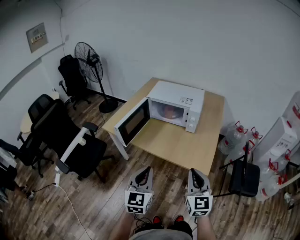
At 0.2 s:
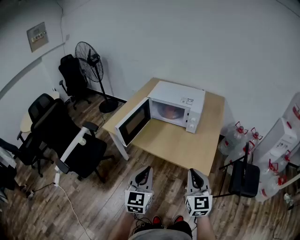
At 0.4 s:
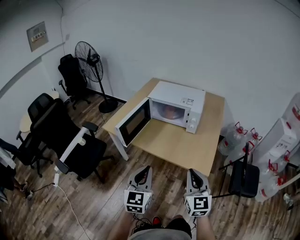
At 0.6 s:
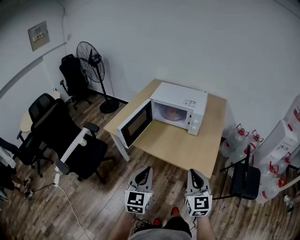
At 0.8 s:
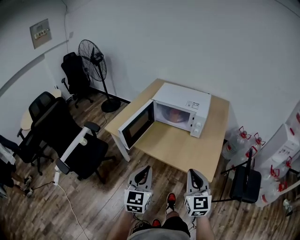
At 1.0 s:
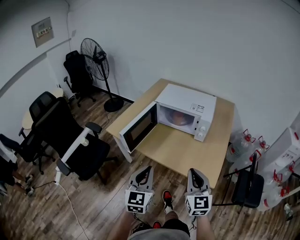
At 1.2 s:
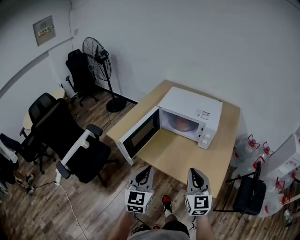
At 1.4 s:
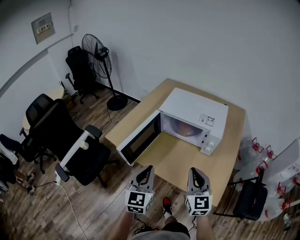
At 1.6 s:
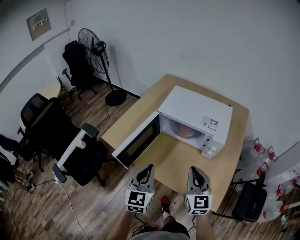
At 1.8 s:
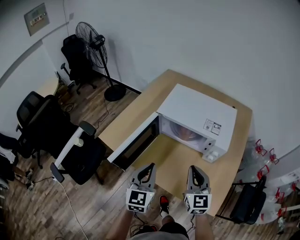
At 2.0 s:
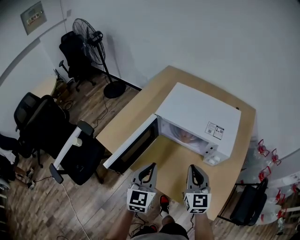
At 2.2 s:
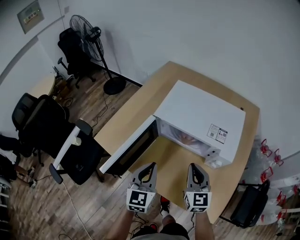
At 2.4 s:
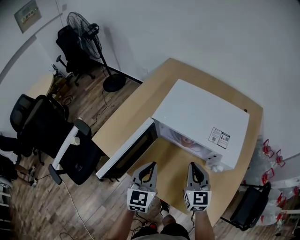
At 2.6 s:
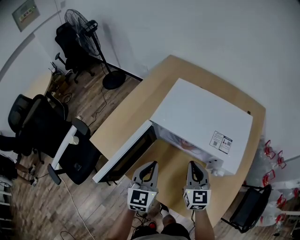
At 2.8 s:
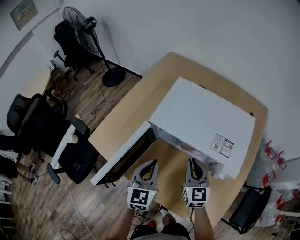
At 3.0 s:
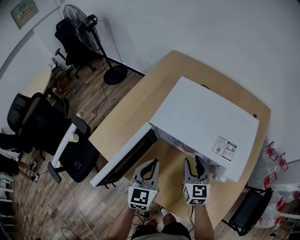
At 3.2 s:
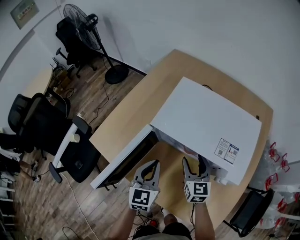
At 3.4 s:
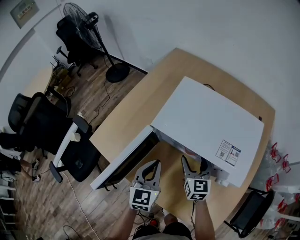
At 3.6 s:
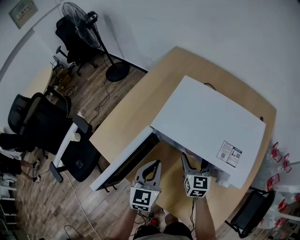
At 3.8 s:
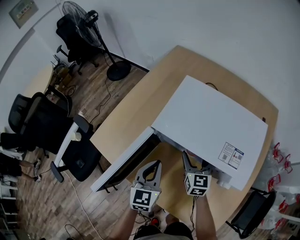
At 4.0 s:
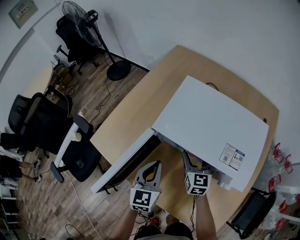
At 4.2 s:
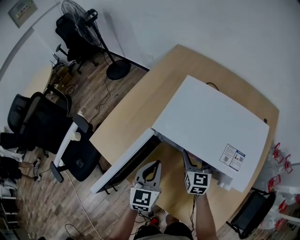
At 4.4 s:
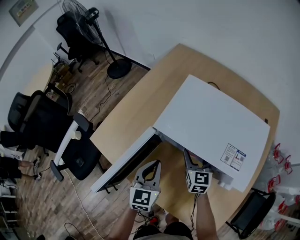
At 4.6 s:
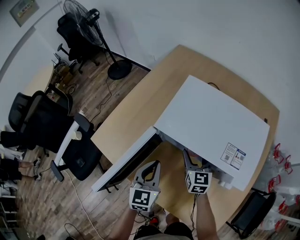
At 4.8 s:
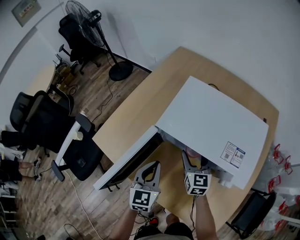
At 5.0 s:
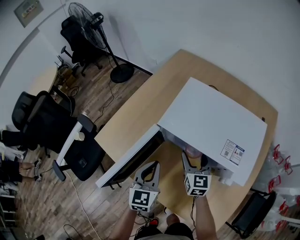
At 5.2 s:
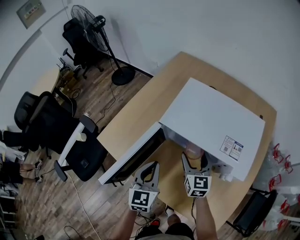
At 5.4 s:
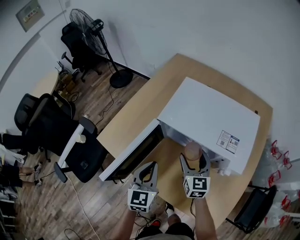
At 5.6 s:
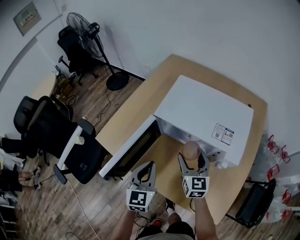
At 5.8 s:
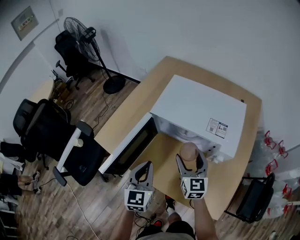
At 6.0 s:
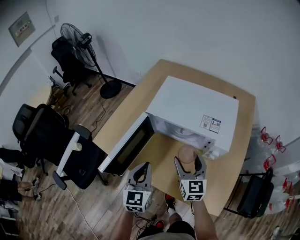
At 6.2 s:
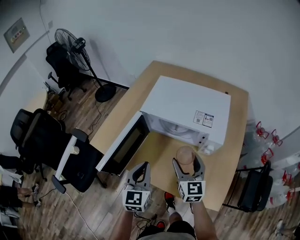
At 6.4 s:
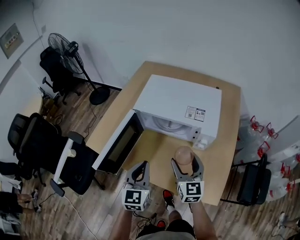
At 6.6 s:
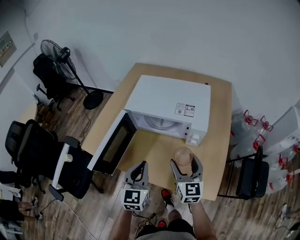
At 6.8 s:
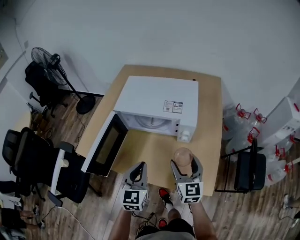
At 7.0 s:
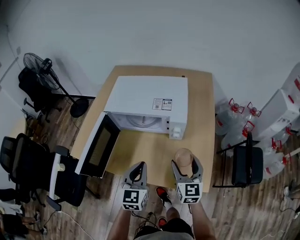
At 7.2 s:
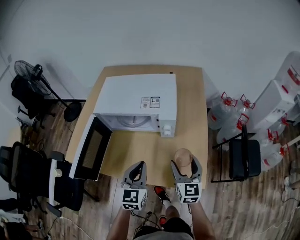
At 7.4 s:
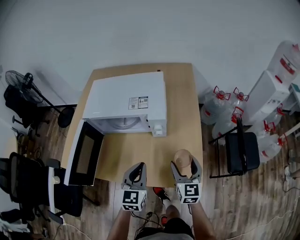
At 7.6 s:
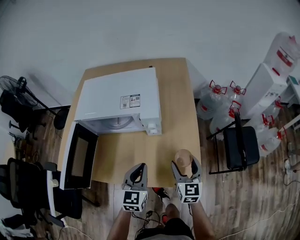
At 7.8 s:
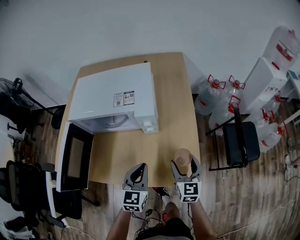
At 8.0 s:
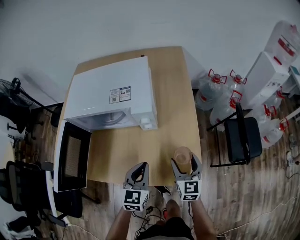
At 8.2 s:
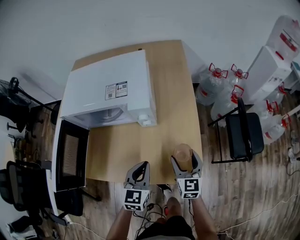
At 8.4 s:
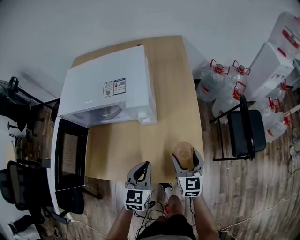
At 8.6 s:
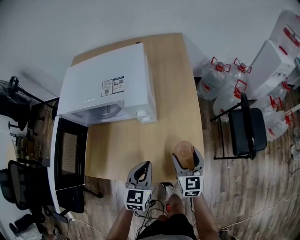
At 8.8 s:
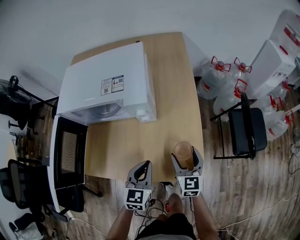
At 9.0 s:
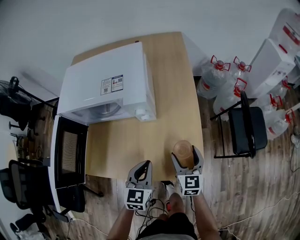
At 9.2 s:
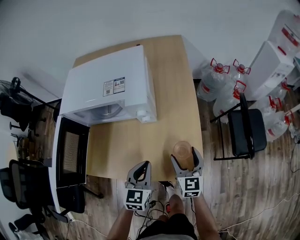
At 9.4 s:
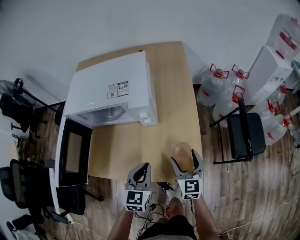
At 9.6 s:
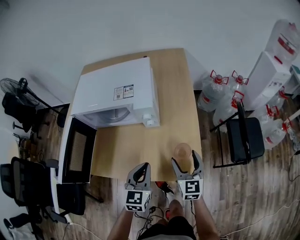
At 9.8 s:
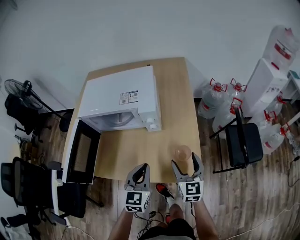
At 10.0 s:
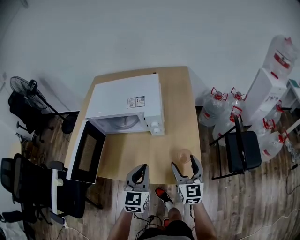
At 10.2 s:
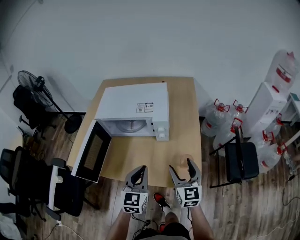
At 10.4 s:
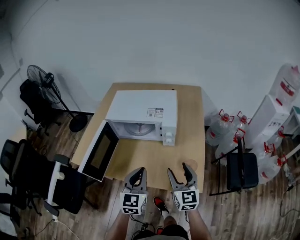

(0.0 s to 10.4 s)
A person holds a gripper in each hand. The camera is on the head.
0.0 s - 1.4 s: Both grippers move forward, some 20 cm.
1.4 s - 3.0 s: The grippers both shift forward and downward by about 30 cm. The right gripper opens its fingers.
3.0 s - 4.4 s: The right gripper is displaced forward by approximately 5 cm, and opens up.
4.4 s - 6.0 s: The grippers both shift backward and upward by approximately 15 cm.
6.0 s - 7.4 s: The right gripper moves some 25 cm, and rotates approximately 30 degrees. Meanwhile the left gripper shifts by approximately 20 cm, and rotates approximately 30 degrees.
7.4 s - 9.0 s: The left gripper is displaced downward and to the right by roughly 10 cm. Meanwhile the right gripper is displaced downward by some 10 cm.
9.0 s - 10.4 s: Both grippers move upward and to the left, about 20 cm. The left gripper changes its angle by roughly 20 degrees.

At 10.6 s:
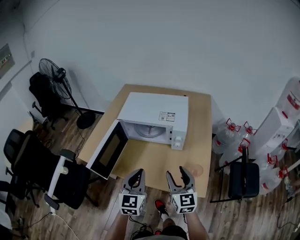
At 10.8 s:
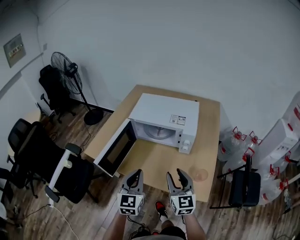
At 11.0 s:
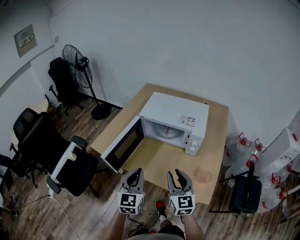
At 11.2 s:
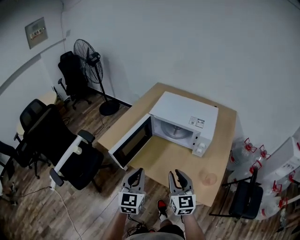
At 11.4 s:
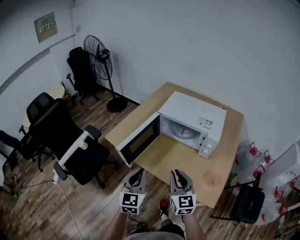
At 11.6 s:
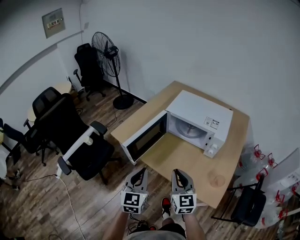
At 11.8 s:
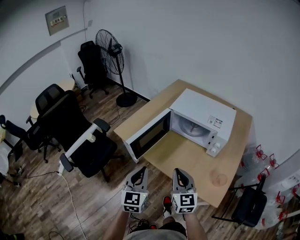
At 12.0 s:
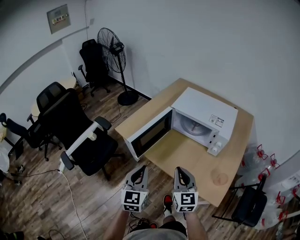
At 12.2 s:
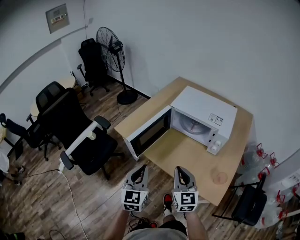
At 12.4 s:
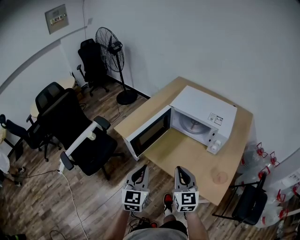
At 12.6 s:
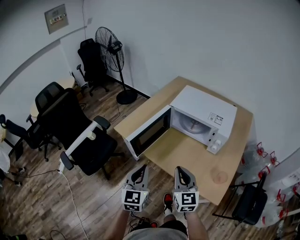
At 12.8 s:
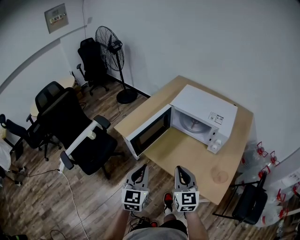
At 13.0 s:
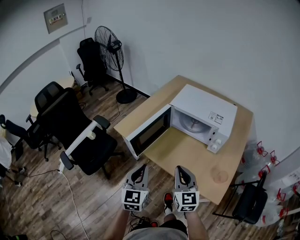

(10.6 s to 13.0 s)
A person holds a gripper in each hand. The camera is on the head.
10.6 s - 11.8 s: Both grippers move to the left, some 15 cm. The left gripper turns by about 20 degrees. The right gripper rotates roughly 20 degrees, and closes its fingers.
11.8 s - 13.0 s: Neither gripper changes place.

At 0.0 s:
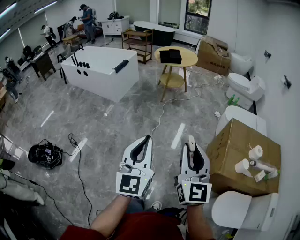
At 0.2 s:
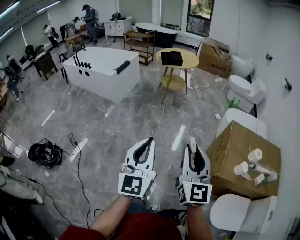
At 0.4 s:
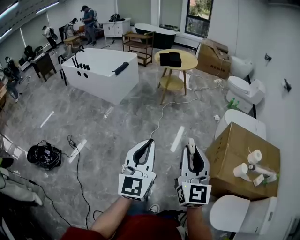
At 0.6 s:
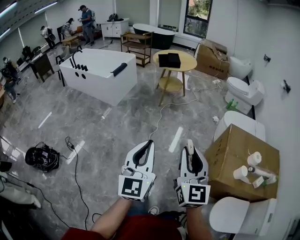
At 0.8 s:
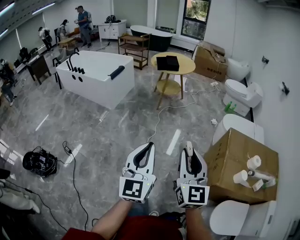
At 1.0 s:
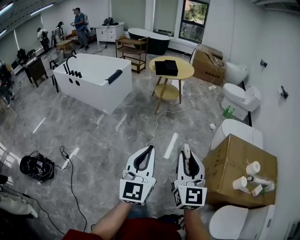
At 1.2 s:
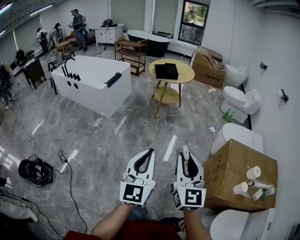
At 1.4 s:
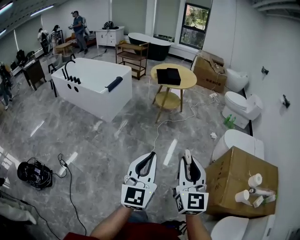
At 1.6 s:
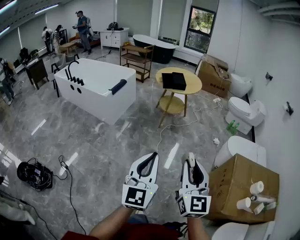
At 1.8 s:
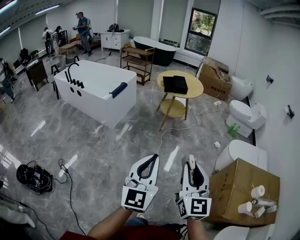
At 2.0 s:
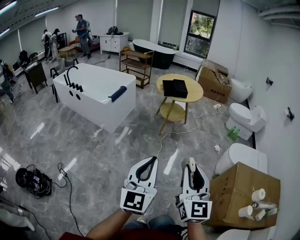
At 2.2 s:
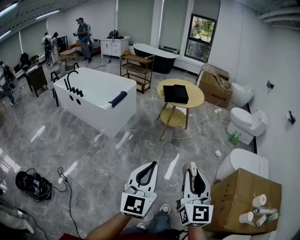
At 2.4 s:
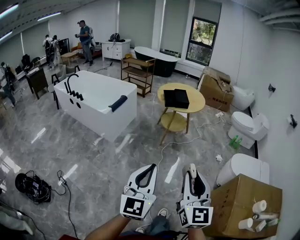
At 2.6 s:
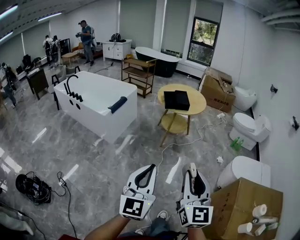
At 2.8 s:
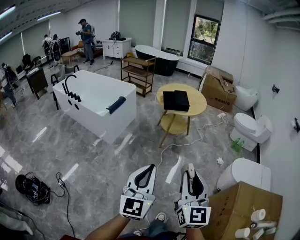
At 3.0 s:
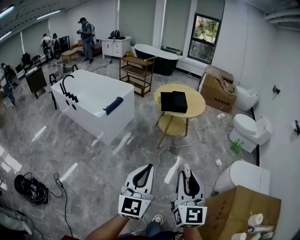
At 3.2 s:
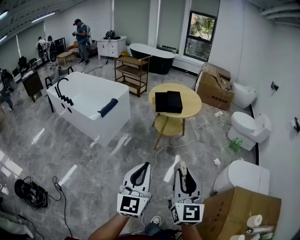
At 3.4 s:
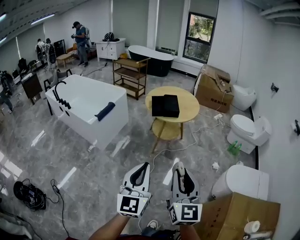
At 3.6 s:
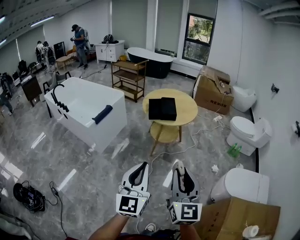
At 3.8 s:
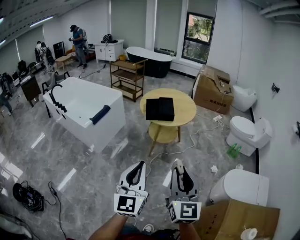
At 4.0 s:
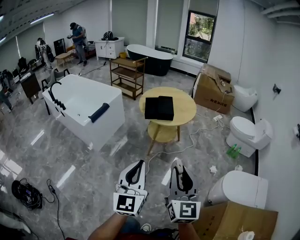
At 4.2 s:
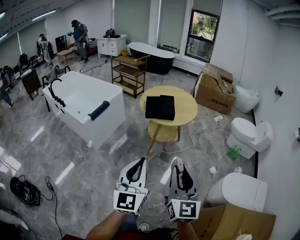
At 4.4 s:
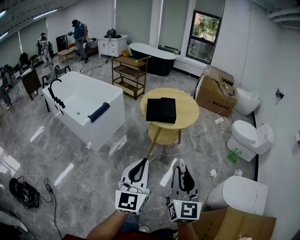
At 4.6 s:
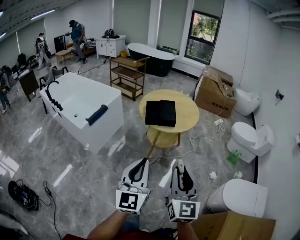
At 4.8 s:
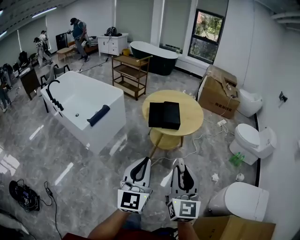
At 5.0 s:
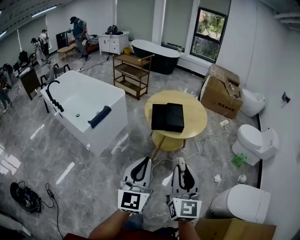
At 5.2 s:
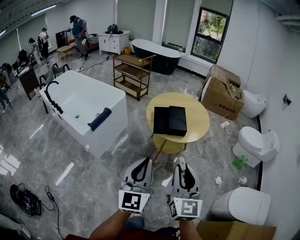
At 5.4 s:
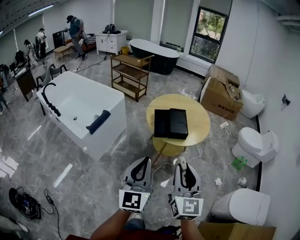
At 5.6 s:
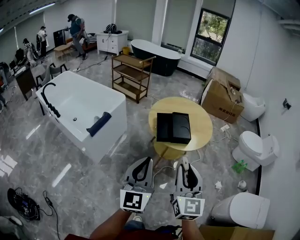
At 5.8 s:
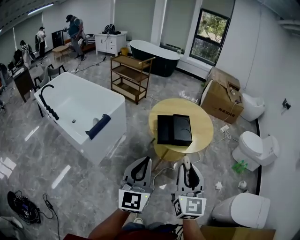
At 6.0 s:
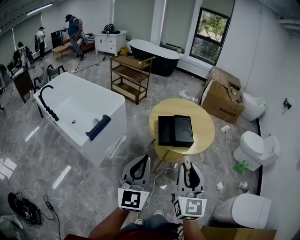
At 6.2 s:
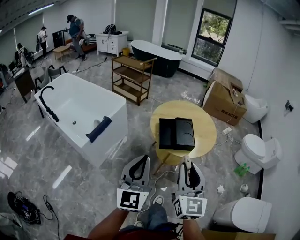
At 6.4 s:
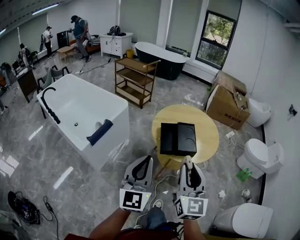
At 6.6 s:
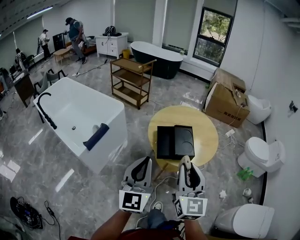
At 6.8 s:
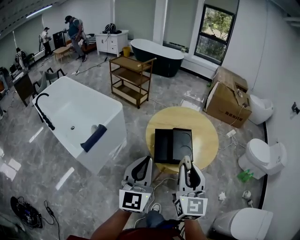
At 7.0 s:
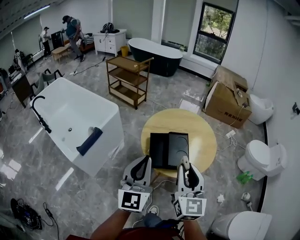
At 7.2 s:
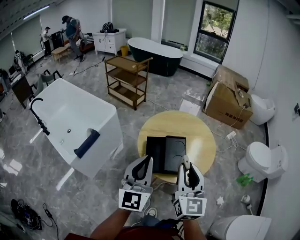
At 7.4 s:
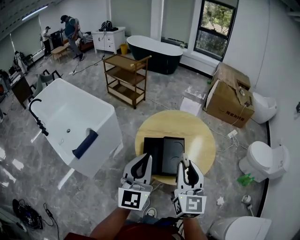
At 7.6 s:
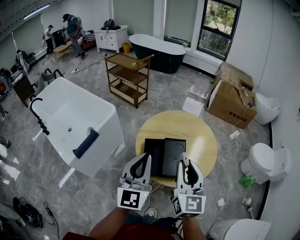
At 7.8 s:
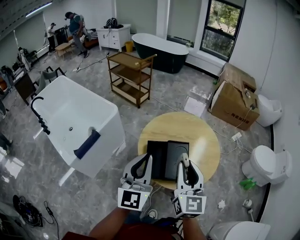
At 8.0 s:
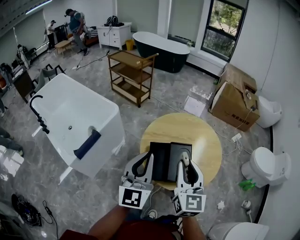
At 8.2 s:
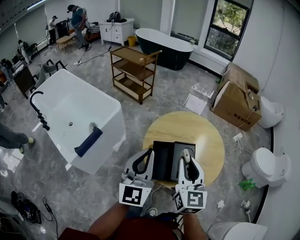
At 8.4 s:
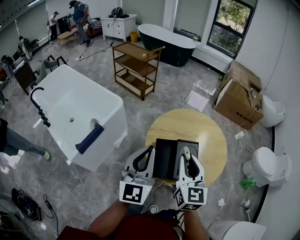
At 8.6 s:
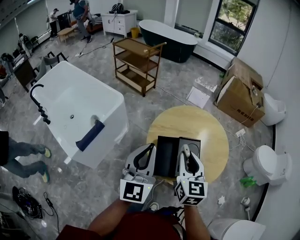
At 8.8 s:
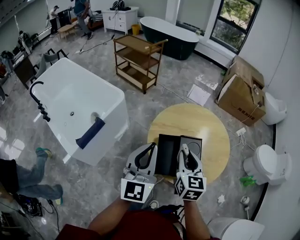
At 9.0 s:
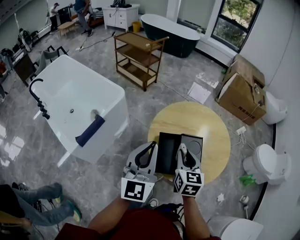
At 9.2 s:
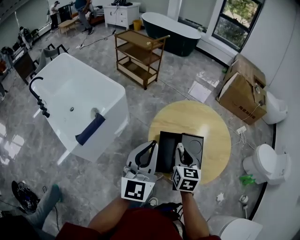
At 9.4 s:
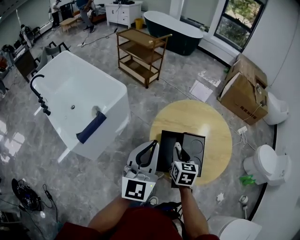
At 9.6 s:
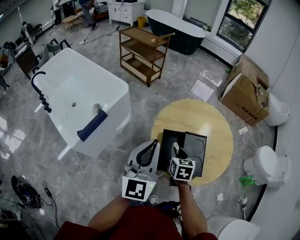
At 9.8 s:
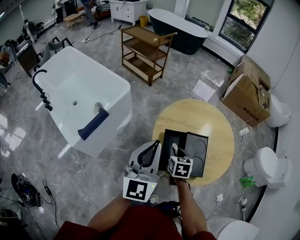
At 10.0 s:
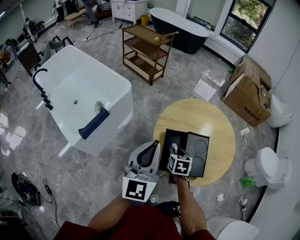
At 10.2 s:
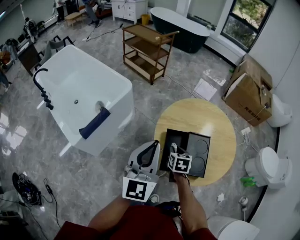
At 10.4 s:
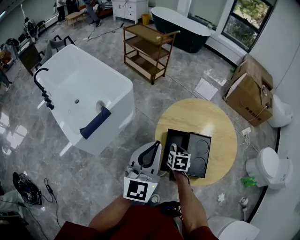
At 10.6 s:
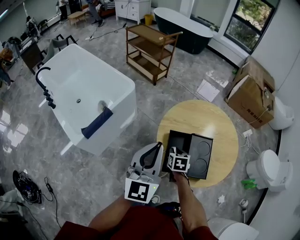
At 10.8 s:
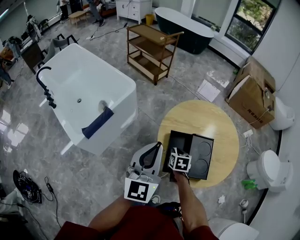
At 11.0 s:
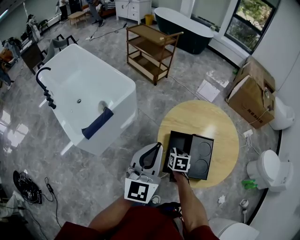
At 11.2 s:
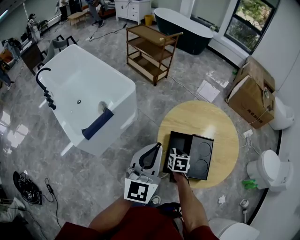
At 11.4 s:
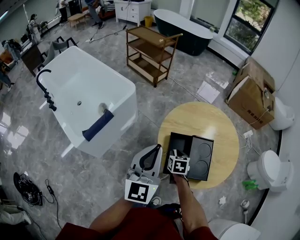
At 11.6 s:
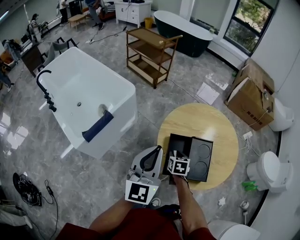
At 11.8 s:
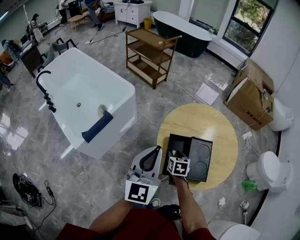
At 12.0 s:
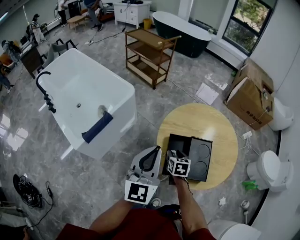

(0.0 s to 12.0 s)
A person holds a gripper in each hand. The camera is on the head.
0.0 s - 1.6 s: The right gripper heads forward and to the left, covering some 25 cm. The left gripper shifts some 25 cm forward.
1.6 s - 3.0 s: The two grippers go some 25 cm forward.
3.0 s - 4.4 s: Both grippers travel together forward and to the right, approximately 25 cm.
4.4 s - 6.0 s: Both grippers move forward and to the left, roughly 35 cm.
6.0 s - 7.6 s: The two grippers go roughly 30 cm forward.
7.6 s - 9.0 s: The right gripper travels downward, forward and to the left by roughly 20 cm, and turns by about 20 degrees. Meanwhile the left gripper goes some 10 cm to the left and forward.
9.0 s - 10.4 s: The right gripper is displaced downward by about 20 cm, and turns by some 30 degrees.
10.4 s - 12.0 s: The grippers make only small movements.
